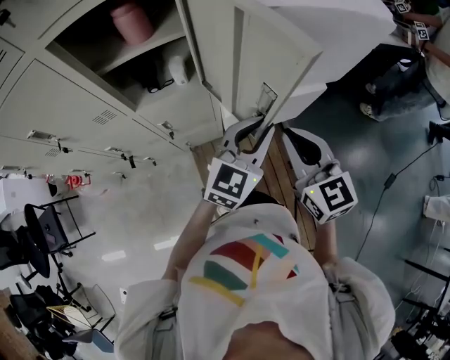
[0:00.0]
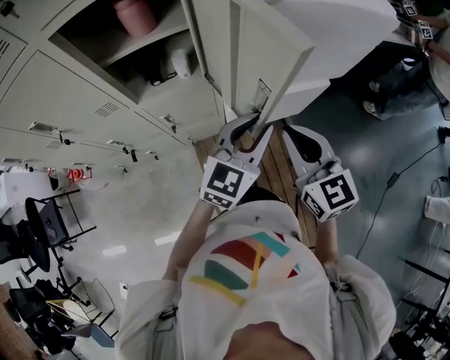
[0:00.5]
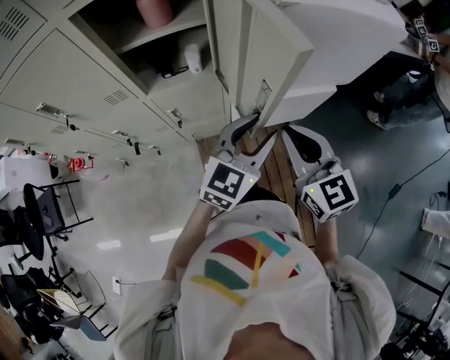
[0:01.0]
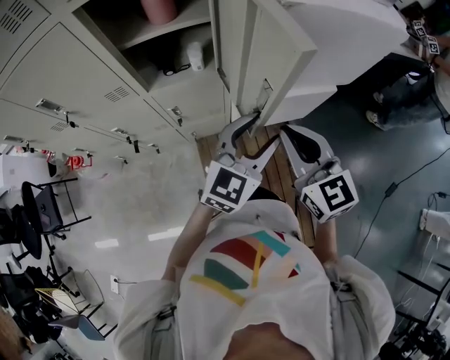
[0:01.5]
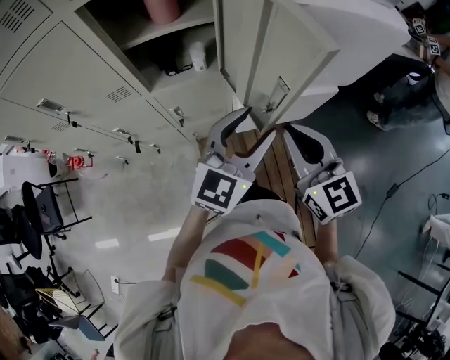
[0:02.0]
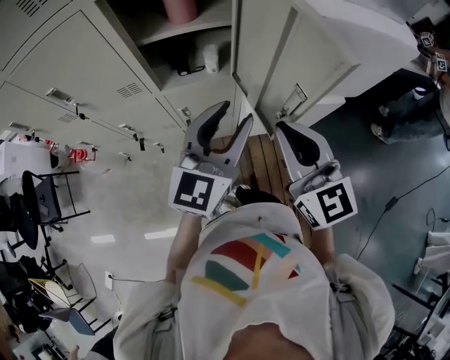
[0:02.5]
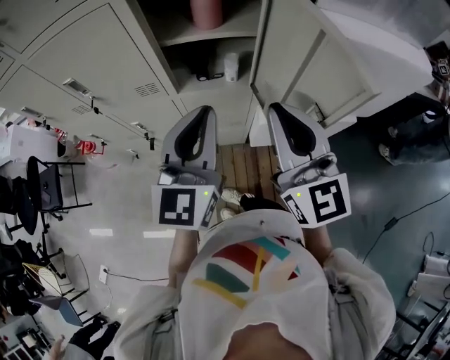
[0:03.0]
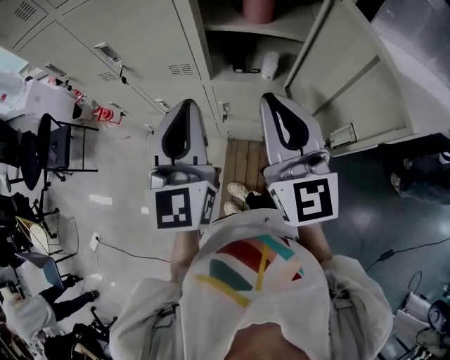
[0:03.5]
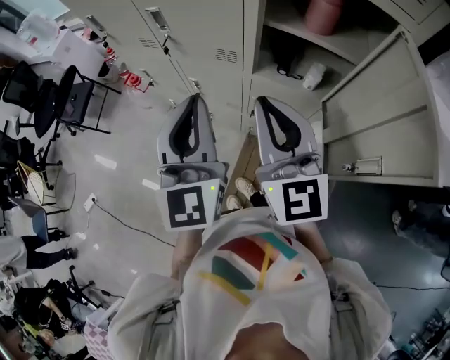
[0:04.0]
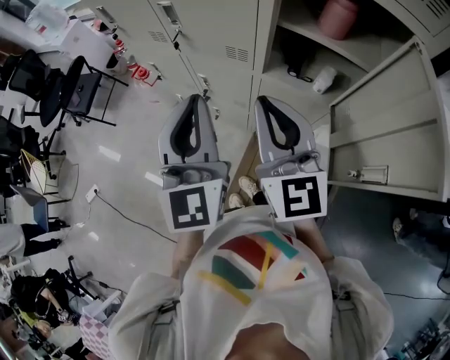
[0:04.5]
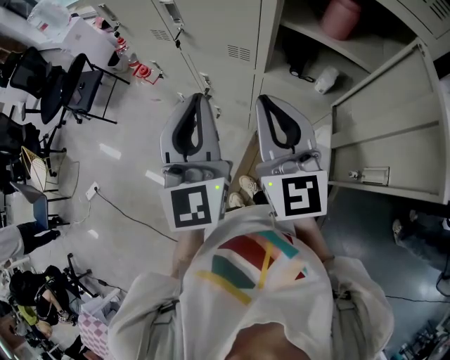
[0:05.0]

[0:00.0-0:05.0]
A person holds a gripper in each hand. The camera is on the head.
0:00.0 to 0:02.5: The right gripper shifts approximately 10 cm to the left and upward. Meanwhile the left gripper moves to the left and upward, roughly 15 cm, and opens its fingers.
0:02.5 to 0:05.0: The right gripper shifts by roughly 25 cm, and swivels roughly 20 degrees. Meanwhile the left gripper shifts by approximately 25 cm, swivels about 60 degrees, and closes its fingers.

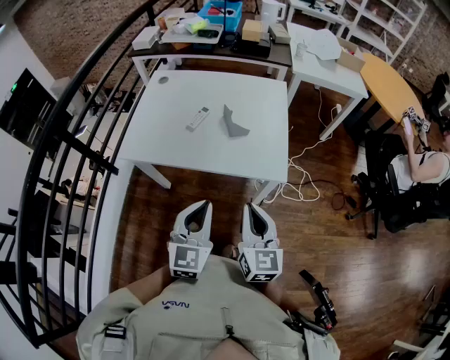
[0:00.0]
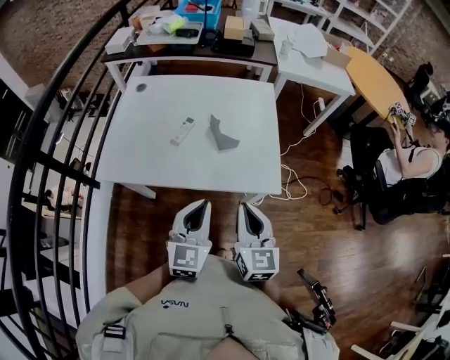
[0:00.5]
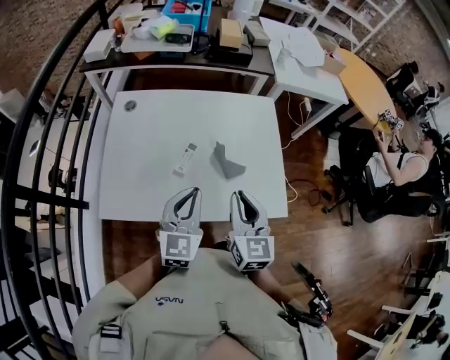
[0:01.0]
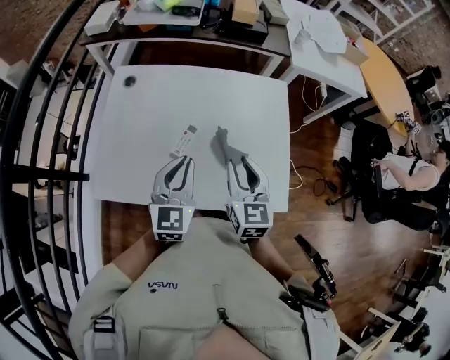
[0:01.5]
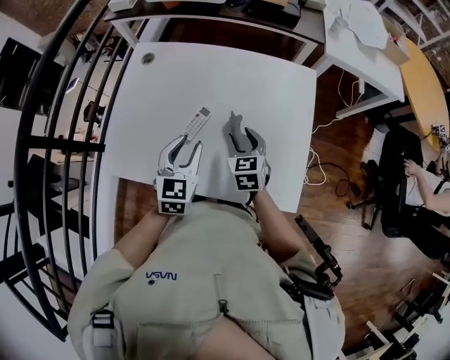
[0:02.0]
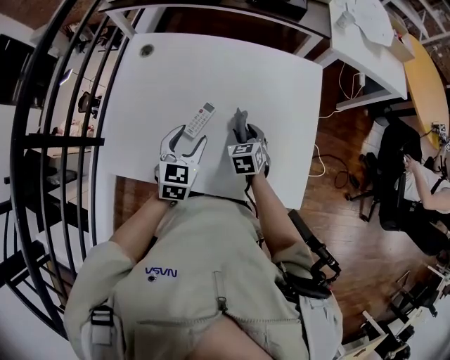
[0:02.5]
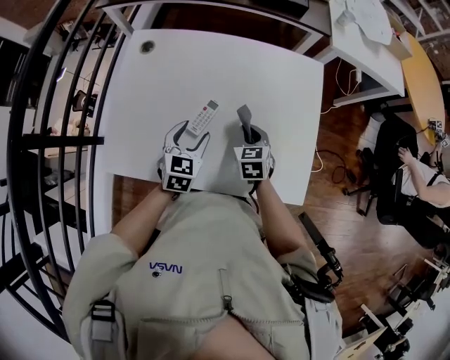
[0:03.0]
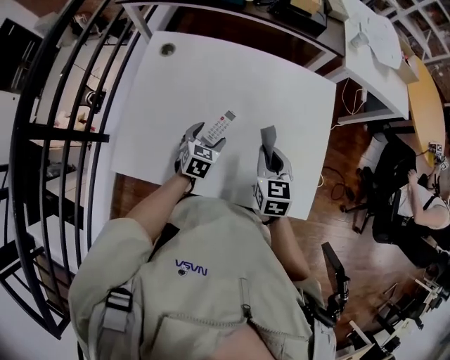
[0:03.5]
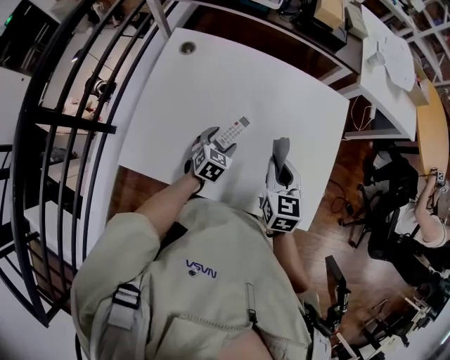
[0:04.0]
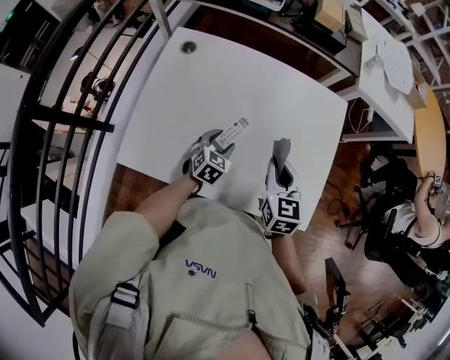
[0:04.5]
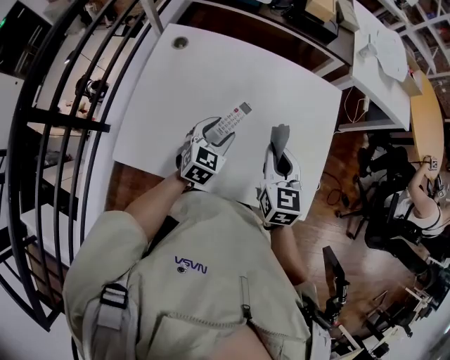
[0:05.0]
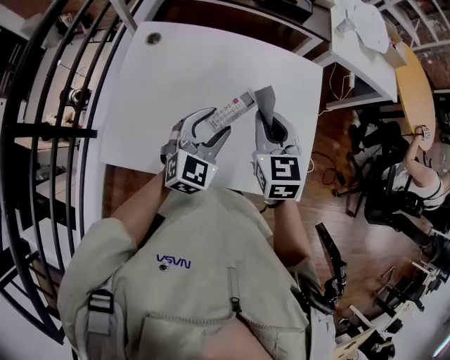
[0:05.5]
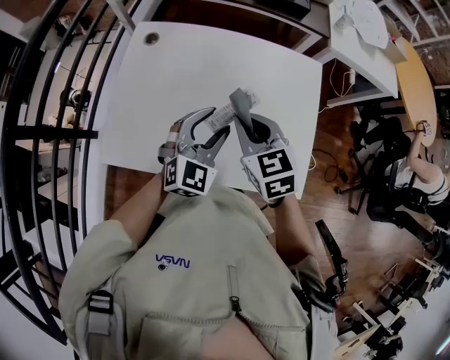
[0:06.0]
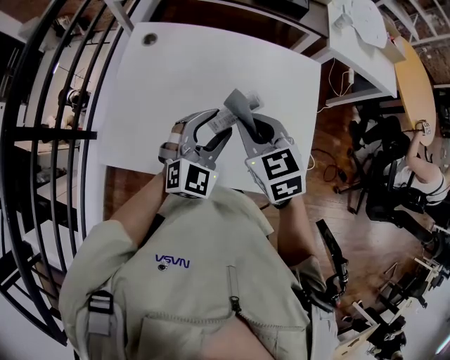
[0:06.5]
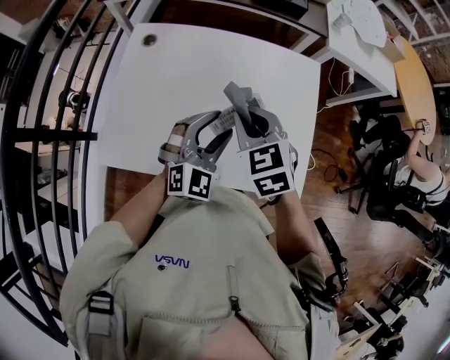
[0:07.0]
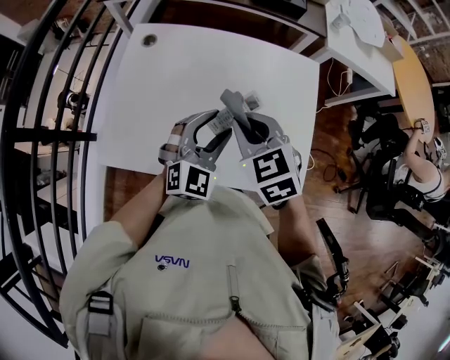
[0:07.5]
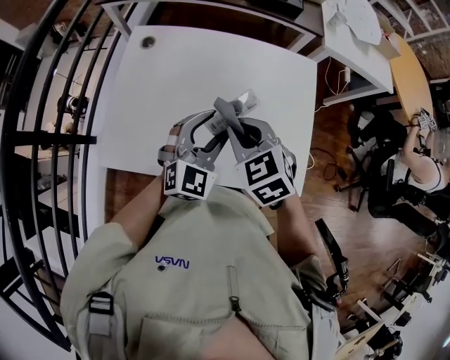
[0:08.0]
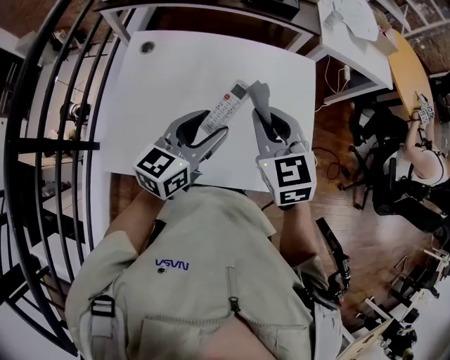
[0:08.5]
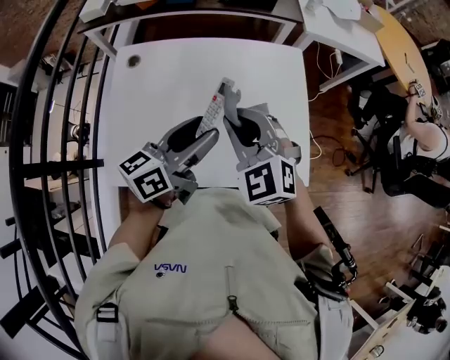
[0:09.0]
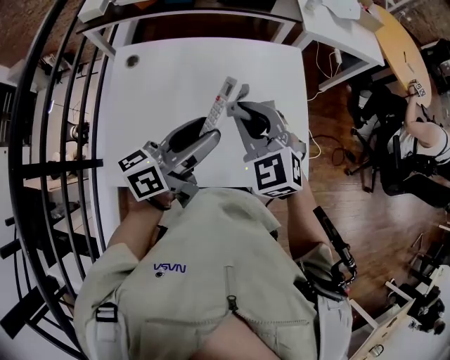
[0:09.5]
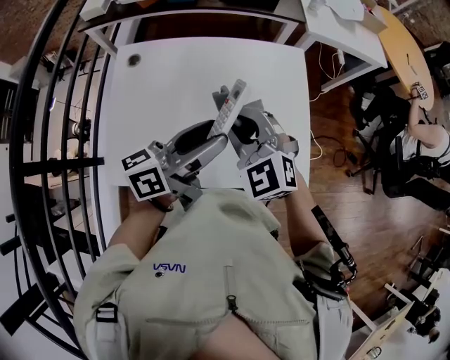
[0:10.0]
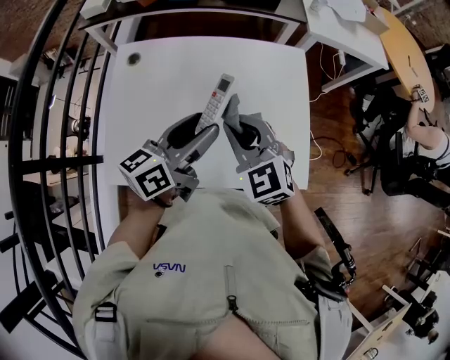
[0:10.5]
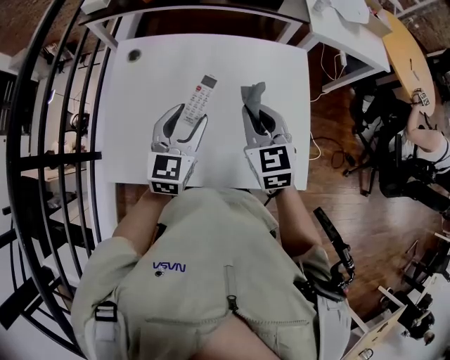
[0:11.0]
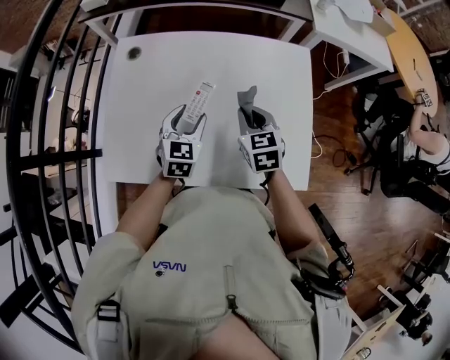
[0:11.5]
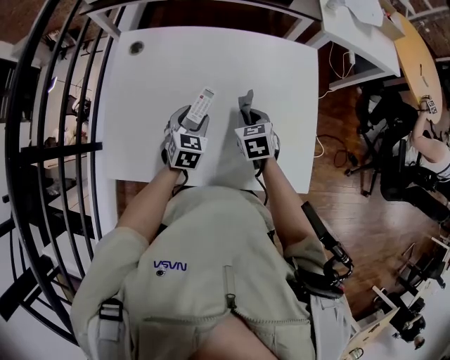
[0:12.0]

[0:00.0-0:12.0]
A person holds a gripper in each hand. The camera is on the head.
0:00.0 to 0:02.0: The right gripper is displaced forward and downward by about 40 cm, changes its angle by roughly 30 degrees, and opens its fingers, while the left gripper shifts about 35 cm forward, and opens.
0:02.0 to 0:04.0: The right gripper is displaced upward by approximately 5 cm, and closes its fingers. The left gripper goes about 15 cm downward, swivels approximately 20 degrees, and opens up.
0:04.0 to 0:06.0: The left gripper is displaced upward by roughly 20 cm, and swivels some 40 degrees. Meanwhile the right gripper goes some 10 cm upward and to the left.
0:08.0 to 0:10.0: The right gripper goes some 5 cm upward, and turns by approximately 30 degrees. Meanwhile the left gripper moves upward, approximately 10 cm, and rolls counterclockwise, seen from behind, by approximately 70 degrees.
0:10.0 to 0:12.0: The grippers both shift downward by approximately 25 cm. The right gripper rotates some 50 degrees, while the left gripper tips its fingers downward by roughly 50 degrees.

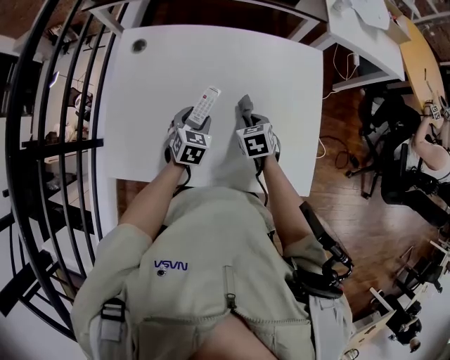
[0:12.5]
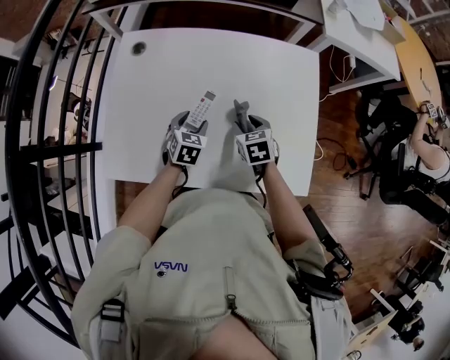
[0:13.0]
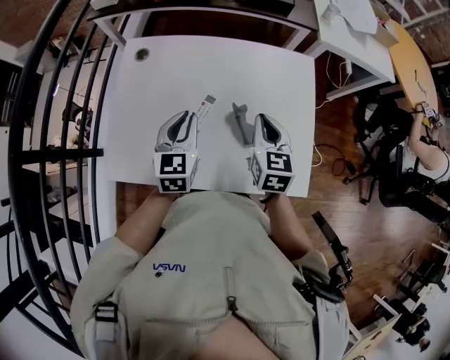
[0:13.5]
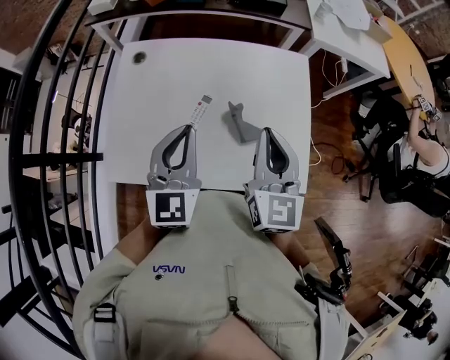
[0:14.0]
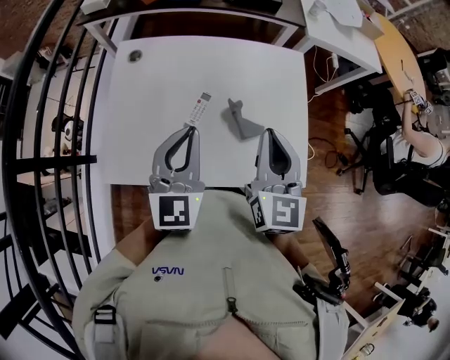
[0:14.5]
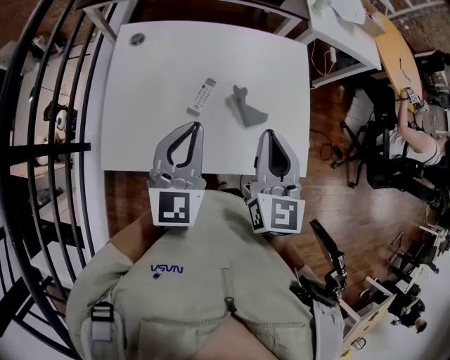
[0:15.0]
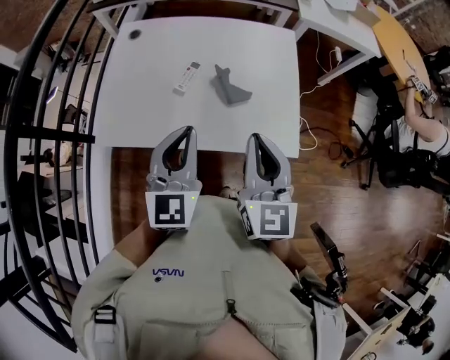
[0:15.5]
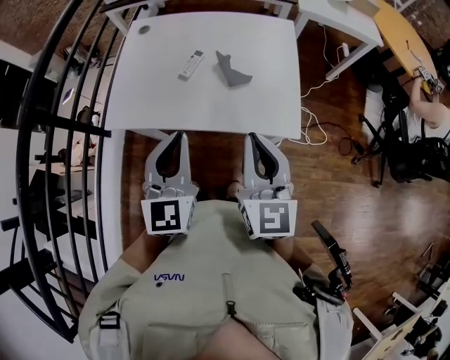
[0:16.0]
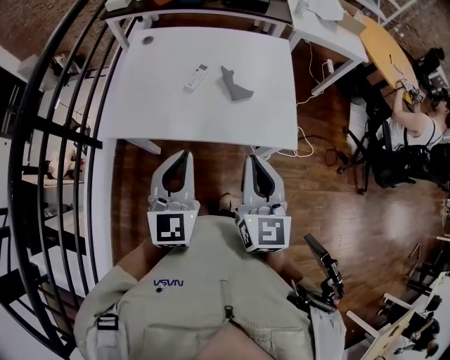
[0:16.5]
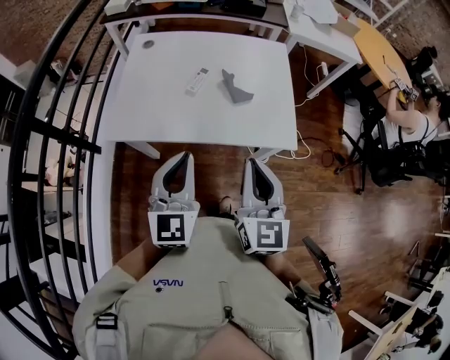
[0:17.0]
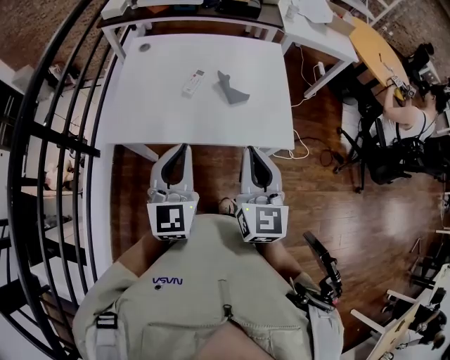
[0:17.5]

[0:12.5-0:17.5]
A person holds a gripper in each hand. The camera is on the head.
0:12.5 to 0:15.0: The right gripper shifts some 30 cm upward and backward, points its fingers roughly 50 degrees further upward, and opens, then closes once more, while the left gripper travels upward by some 30 cm, angles its fingers upward, by approximately 40 degrees, and closes up.
0:15.0 to 0:17.5: Both grippers move backward, some 20 cm.

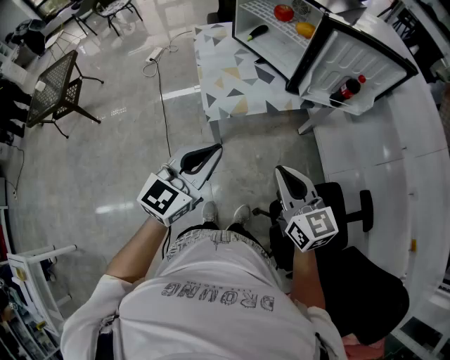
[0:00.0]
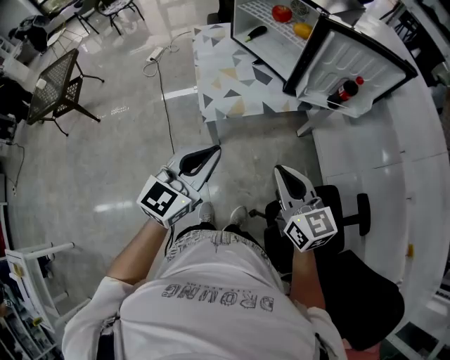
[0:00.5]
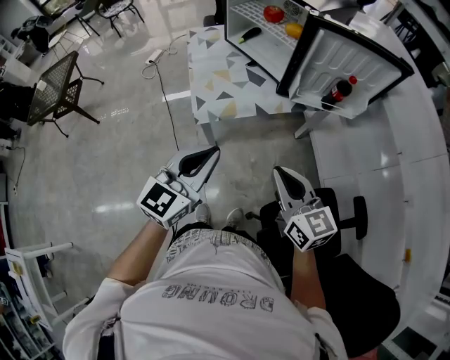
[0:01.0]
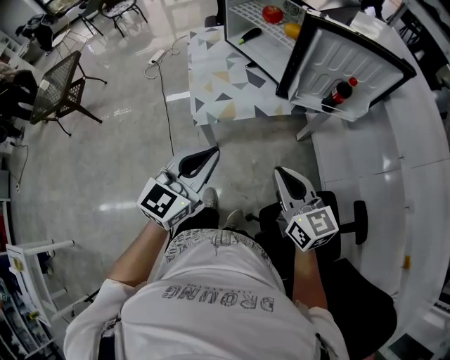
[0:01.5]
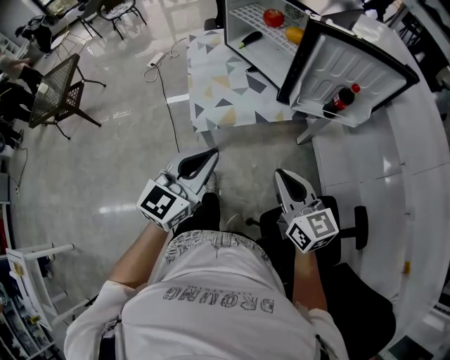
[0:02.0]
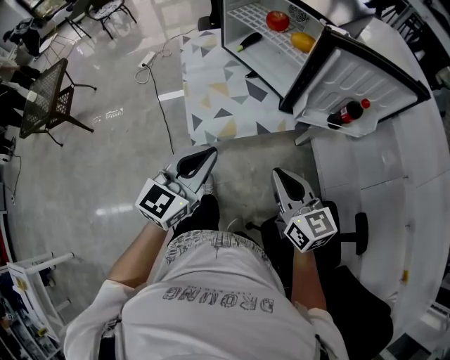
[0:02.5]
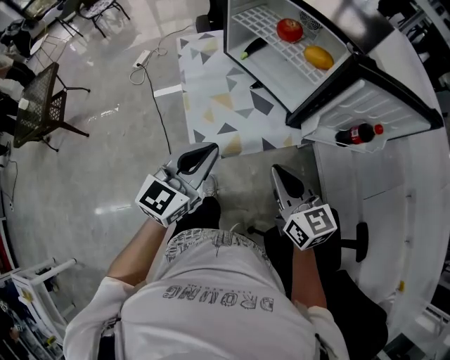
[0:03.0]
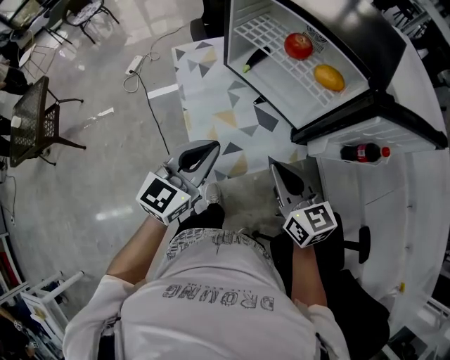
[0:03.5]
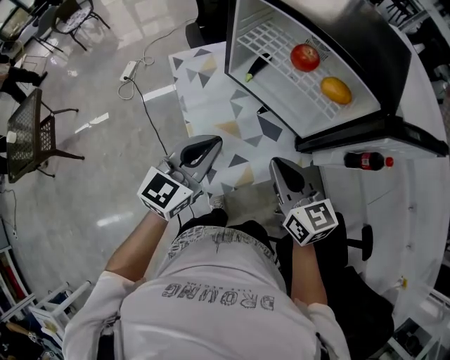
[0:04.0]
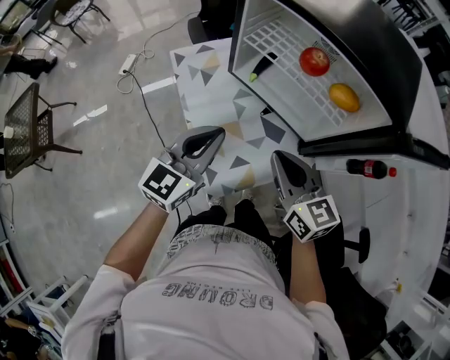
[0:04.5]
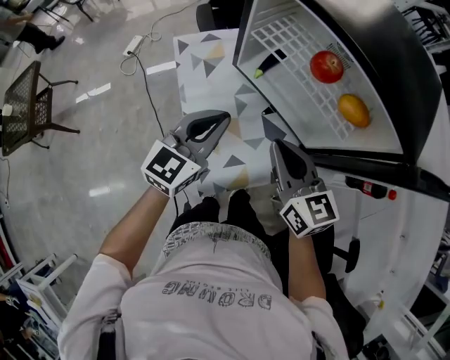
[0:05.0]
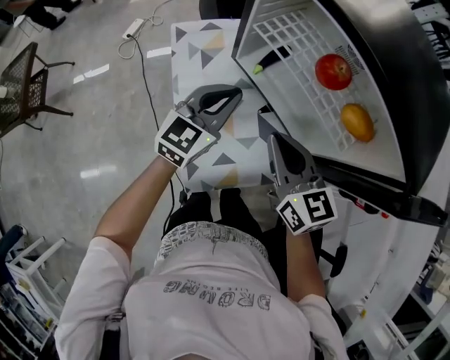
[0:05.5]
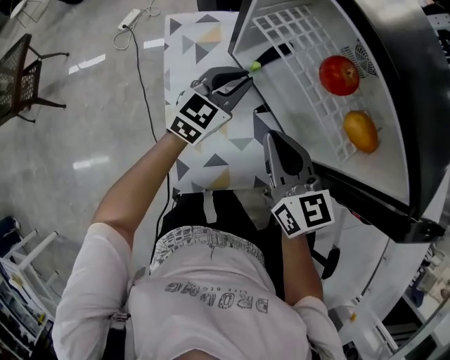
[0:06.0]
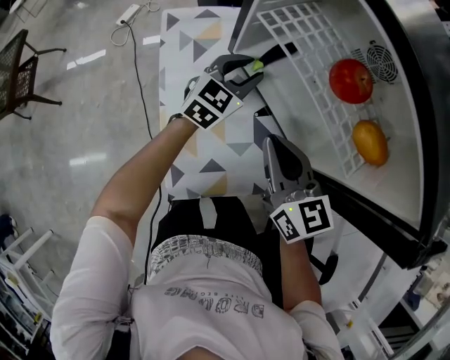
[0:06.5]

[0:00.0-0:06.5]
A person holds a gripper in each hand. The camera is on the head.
0:00.0 to 0:02.0: The left gripper moves to the right, roughly 5 cm; the right gripper goes roughly 10 cm to the right and forward.
0:02.0 to 0:04.5: The left gripper heads forward, covering roughly 35 cm, while the right gripper is displaced forward and to the left by some 35 cm.
0:04.5 to 0:06.5: The left gripper is displaced forward and downward by some 30 cm, and opens up; the right gripper moves forward and downward, roughly 15 cm.
